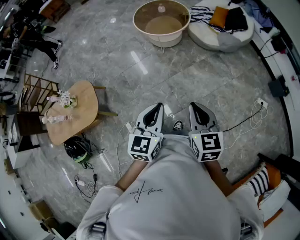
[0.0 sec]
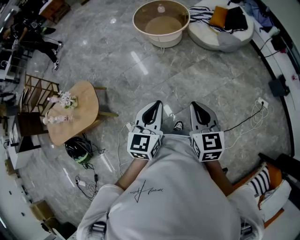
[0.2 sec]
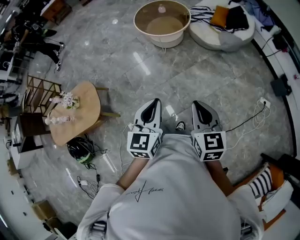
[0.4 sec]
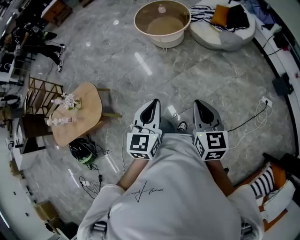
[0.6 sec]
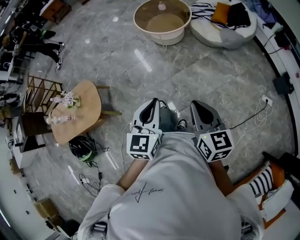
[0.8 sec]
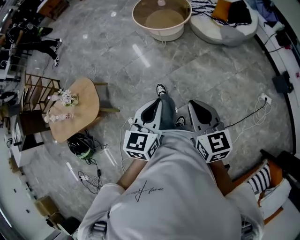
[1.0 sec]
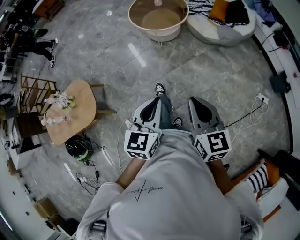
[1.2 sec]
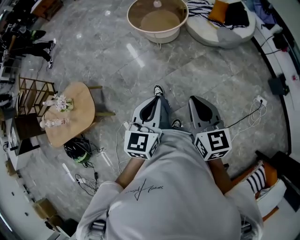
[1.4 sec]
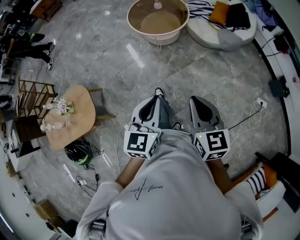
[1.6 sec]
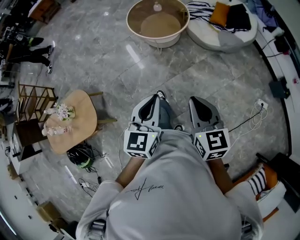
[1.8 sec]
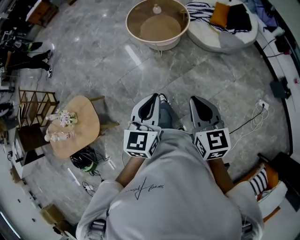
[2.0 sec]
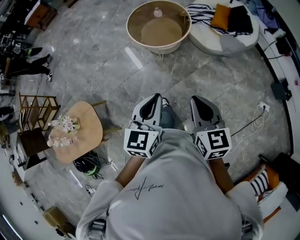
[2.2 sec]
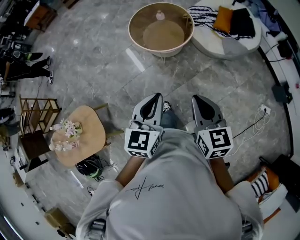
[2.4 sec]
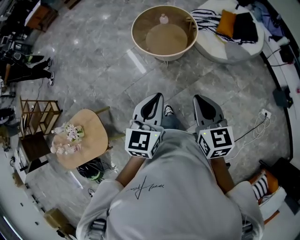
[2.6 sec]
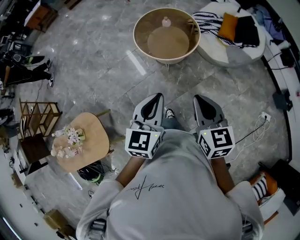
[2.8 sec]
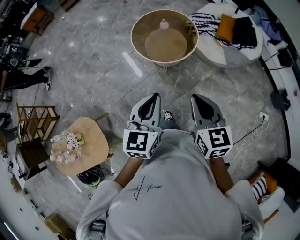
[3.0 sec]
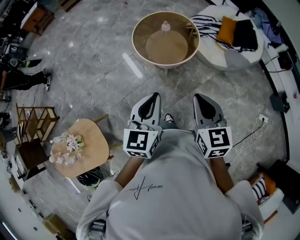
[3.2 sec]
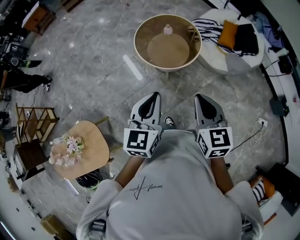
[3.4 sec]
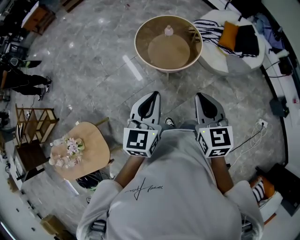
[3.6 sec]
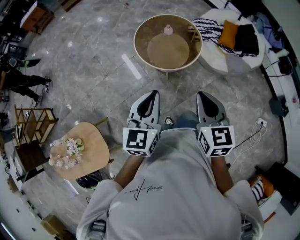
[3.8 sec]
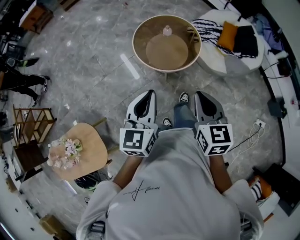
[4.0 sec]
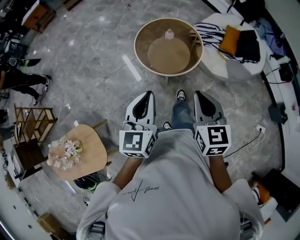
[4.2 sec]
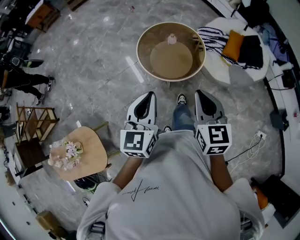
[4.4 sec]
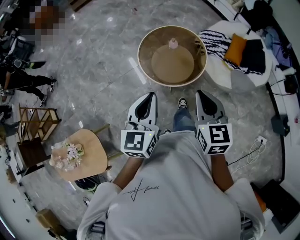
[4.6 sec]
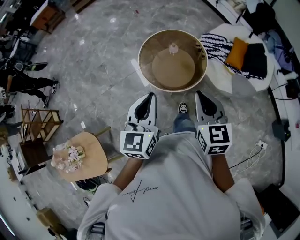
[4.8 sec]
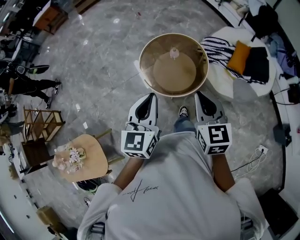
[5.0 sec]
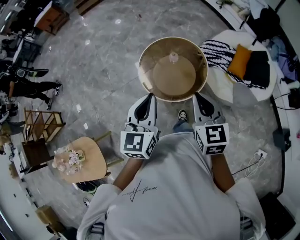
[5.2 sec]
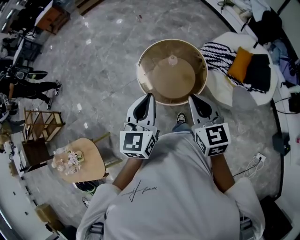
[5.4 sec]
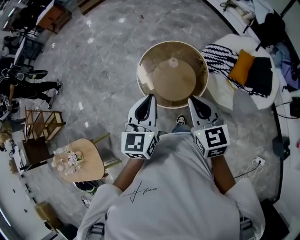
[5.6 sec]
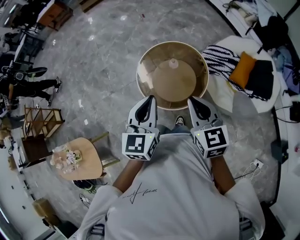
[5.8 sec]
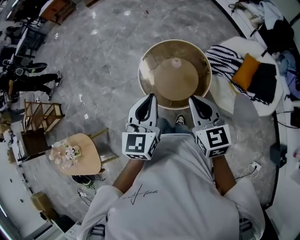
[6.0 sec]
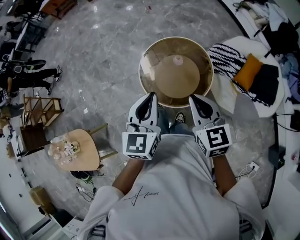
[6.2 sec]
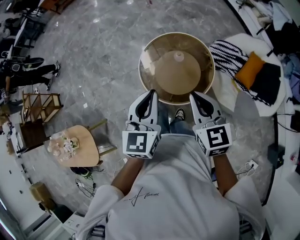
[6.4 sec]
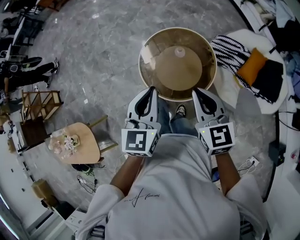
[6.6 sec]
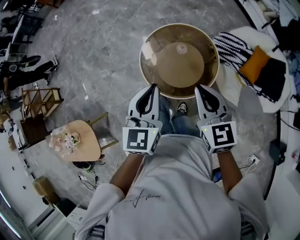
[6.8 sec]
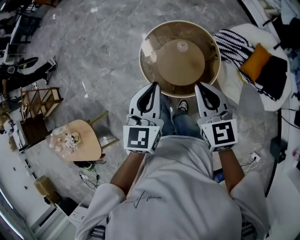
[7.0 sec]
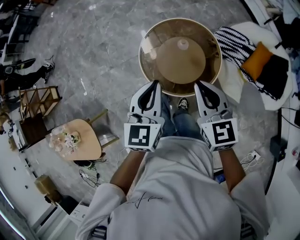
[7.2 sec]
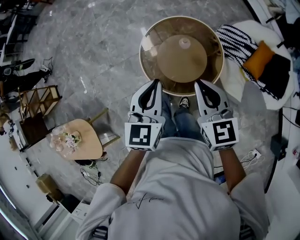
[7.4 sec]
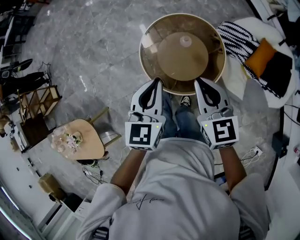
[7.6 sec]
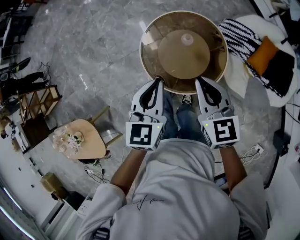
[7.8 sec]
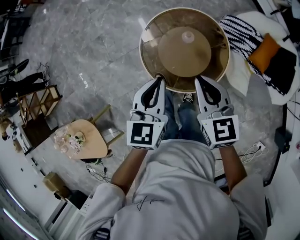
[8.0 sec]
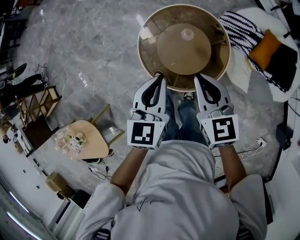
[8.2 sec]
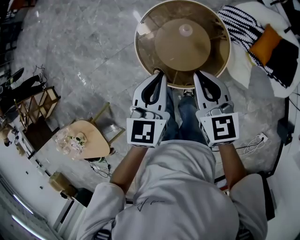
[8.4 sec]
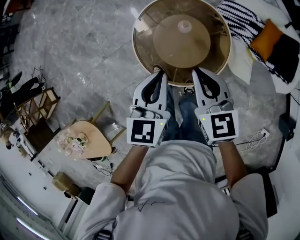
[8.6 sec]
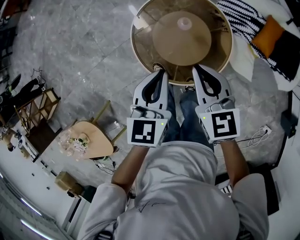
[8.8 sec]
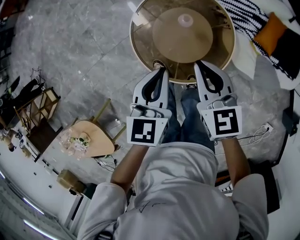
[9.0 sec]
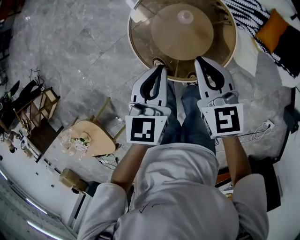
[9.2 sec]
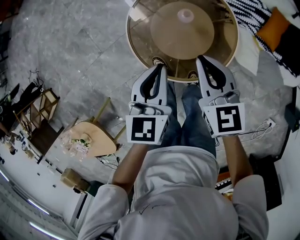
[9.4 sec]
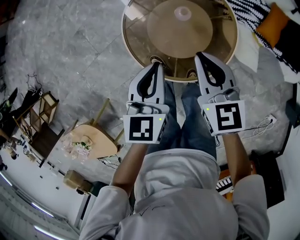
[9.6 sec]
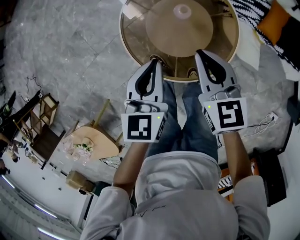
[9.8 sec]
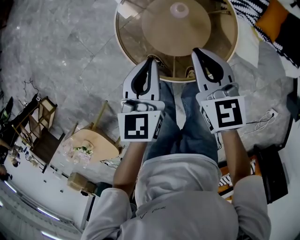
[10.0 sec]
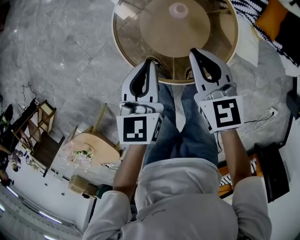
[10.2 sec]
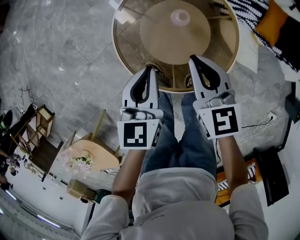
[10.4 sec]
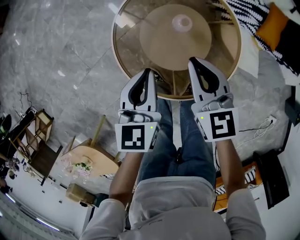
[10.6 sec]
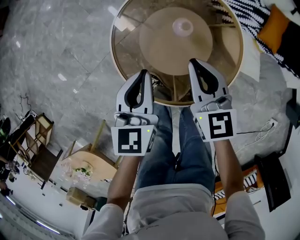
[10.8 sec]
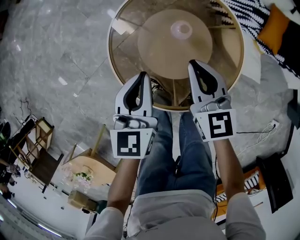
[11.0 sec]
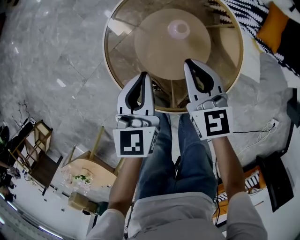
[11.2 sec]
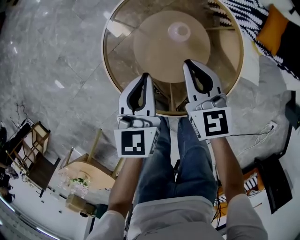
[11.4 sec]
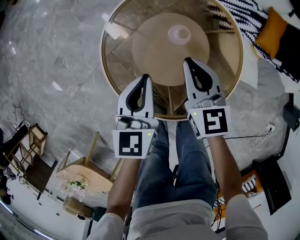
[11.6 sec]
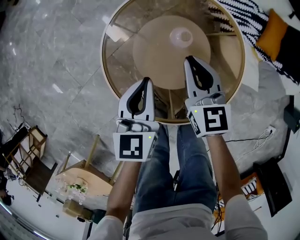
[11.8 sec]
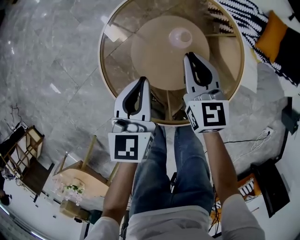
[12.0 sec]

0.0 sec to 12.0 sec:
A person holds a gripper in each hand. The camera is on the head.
0.0 sec to 1.6 sec: Both grippers move forward, roughly 10 cm.
1.6 sec to 3.0 sec: The two grippers go approximately 25 cm forward.
3.0 sec to 4.4 sec: Both grippers move forward, approximately 15 cm.
4.4 sec to 6.0 sec: The left gripper is displaced forward and to the right by about 25 cm, while the right gripper travels forward by about 20 cm.
6.0 sec to 7.6 sec: The right gripper shifts some 10 cm forward and downward. Meanwhile the left gripper travels downward and forward by about 10 cm.
7.6 sec to 9.0 sec: Both grippers travel together downward and forward, some 10 cm.
9.0 sec to 10.4 sec: The left gripper heads downward and forward, covering about 15 cm; the right gripper heads downward, covering roughly 10 cm.
10.4 sec to 12.0 sec: The left gripper travels downward by about 10 cm. The right gripper goes about 15 cm downward and forward.

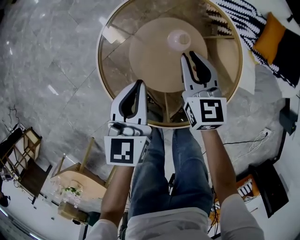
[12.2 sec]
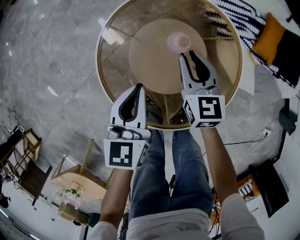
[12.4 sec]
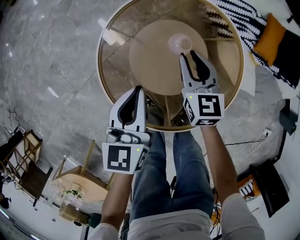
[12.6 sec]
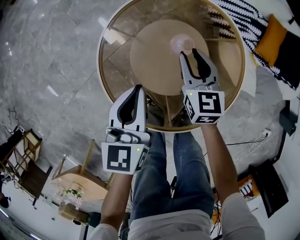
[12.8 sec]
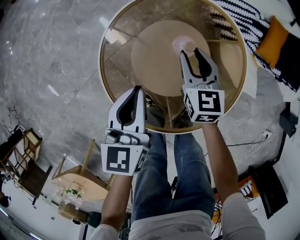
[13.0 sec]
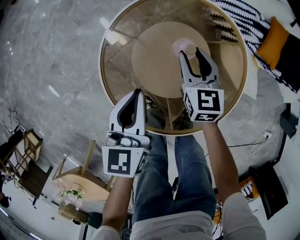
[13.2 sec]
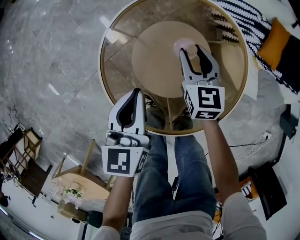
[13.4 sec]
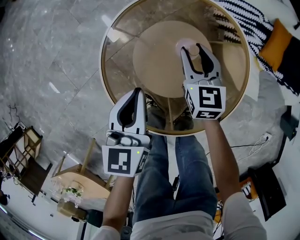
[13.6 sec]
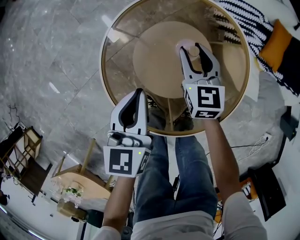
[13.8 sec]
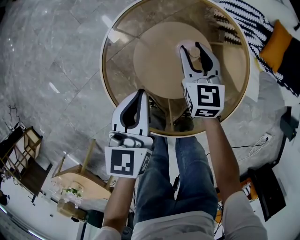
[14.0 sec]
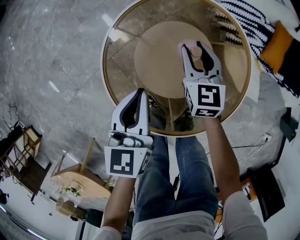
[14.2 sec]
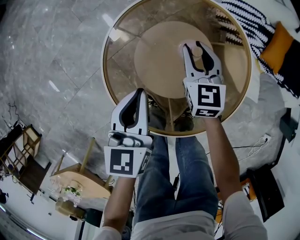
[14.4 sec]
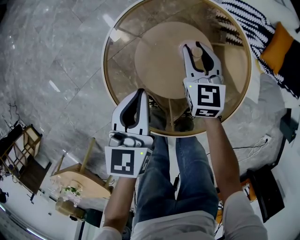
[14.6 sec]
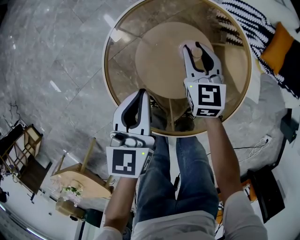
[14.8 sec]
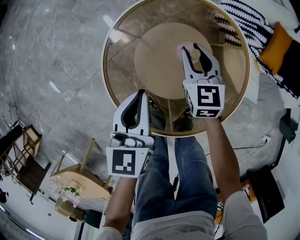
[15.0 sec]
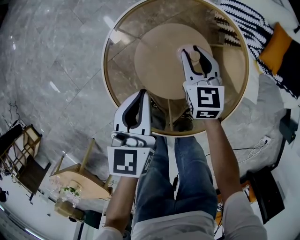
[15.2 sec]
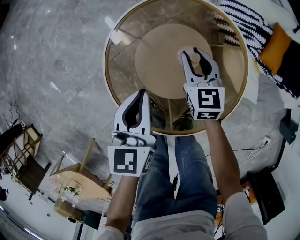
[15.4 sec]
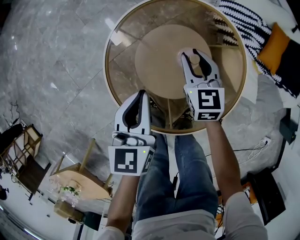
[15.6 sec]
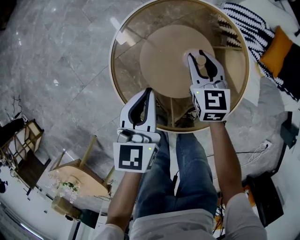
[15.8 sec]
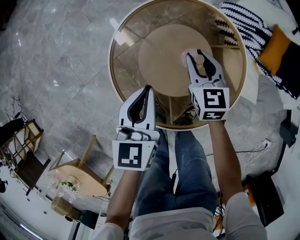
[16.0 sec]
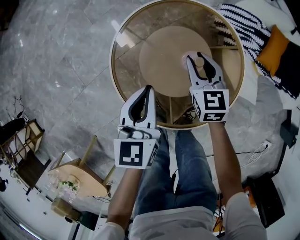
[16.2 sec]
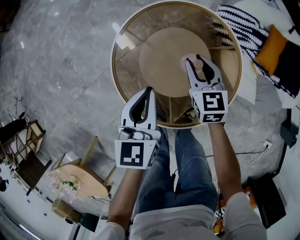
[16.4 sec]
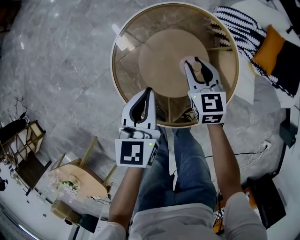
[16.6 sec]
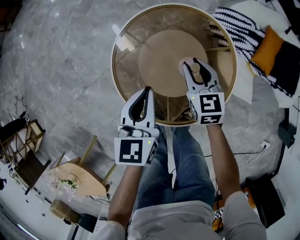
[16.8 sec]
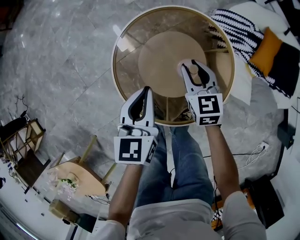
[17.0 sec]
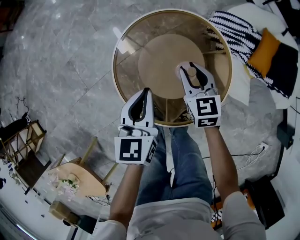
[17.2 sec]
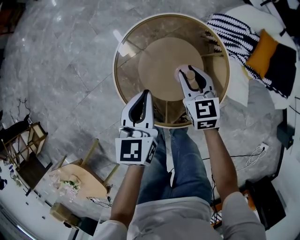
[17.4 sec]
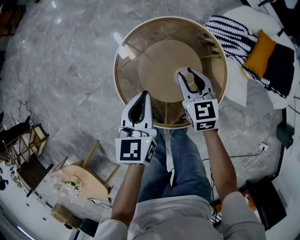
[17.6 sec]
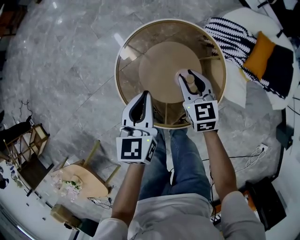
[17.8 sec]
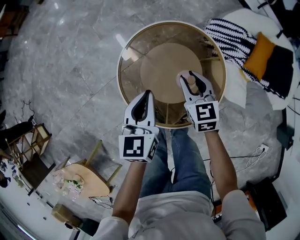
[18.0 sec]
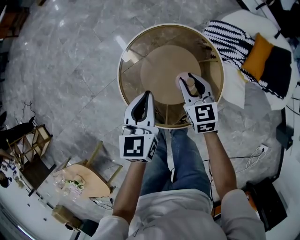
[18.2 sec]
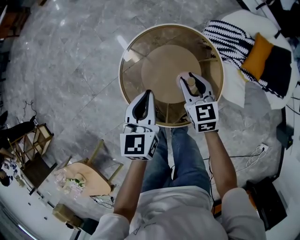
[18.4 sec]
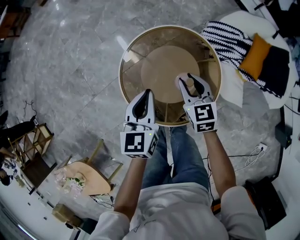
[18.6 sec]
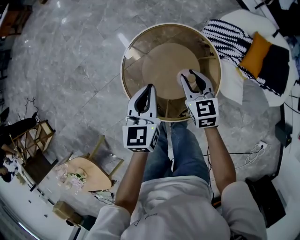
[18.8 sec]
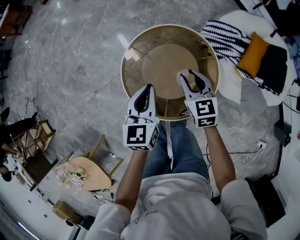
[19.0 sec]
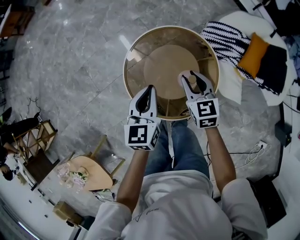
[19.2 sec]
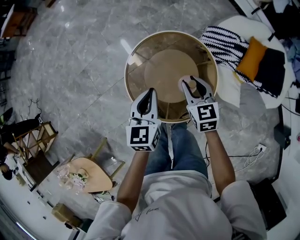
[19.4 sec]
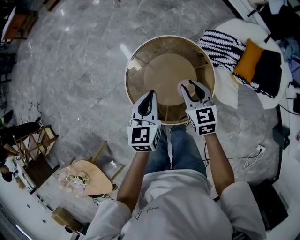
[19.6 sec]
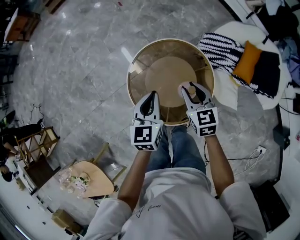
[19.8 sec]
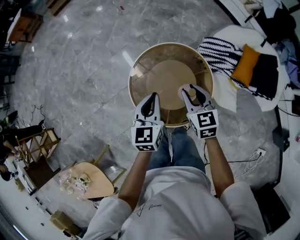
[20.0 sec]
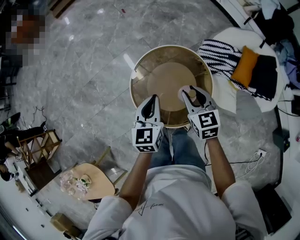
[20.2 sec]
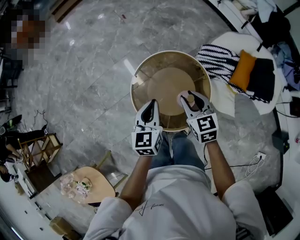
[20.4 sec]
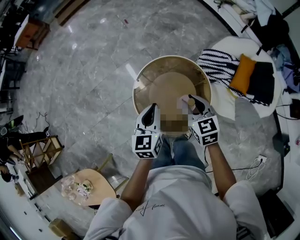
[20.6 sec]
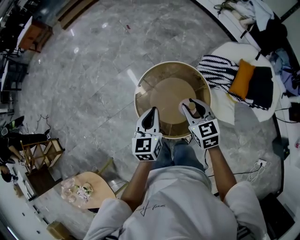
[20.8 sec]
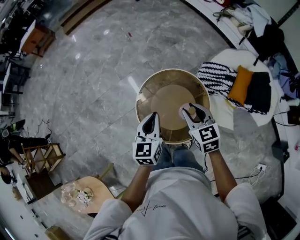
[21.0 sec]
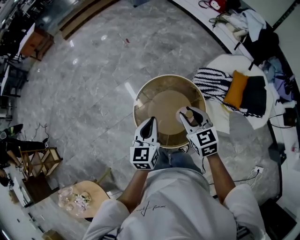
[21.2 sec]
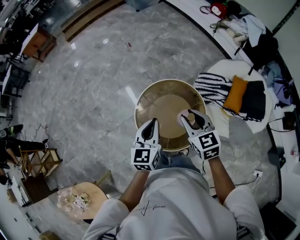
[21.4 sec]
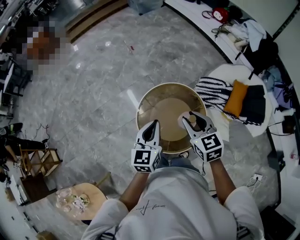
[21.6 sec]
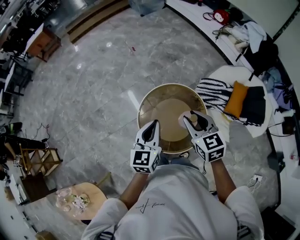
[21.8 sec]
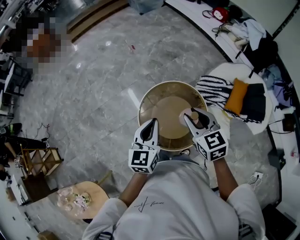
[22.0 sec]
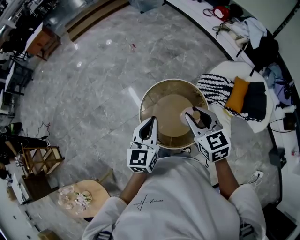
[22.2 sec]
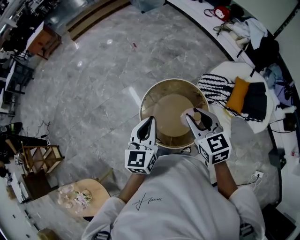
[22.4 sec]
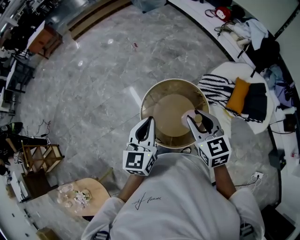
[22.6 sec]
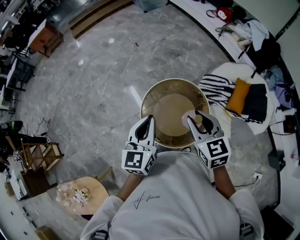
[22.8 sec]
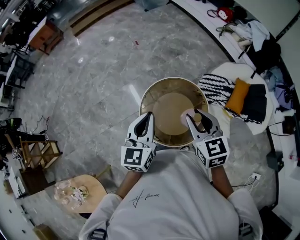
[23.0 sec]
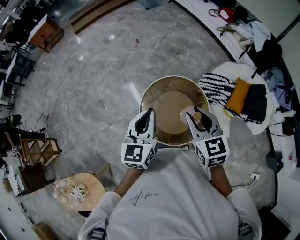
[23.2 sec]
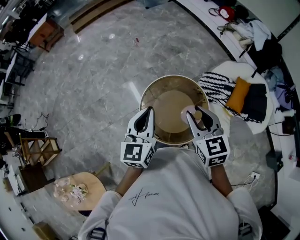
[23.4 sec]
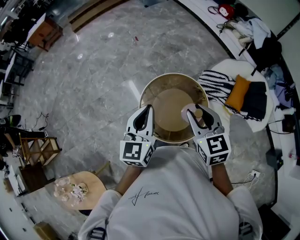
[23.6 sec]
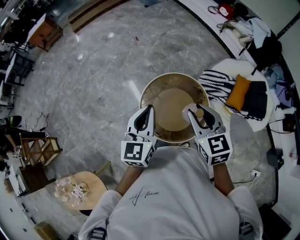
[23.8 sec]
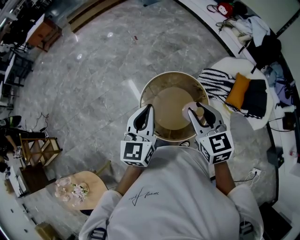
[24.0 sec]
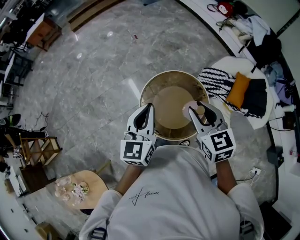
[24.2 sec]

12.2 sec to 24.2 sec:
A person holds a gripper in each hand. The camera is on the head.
12.2 sec to 13.8 sec: The right gripper moves forward and downward, some 5 cm, and opens up.
13.8 sec to 15.2 sec: Neither gripper changes place.
15.2 sec to 16.6 sec: The right gripper moves upward and backward, some 10 cm; the left gripper heads upward, covering about 5 cm.
16.6 sec to 18.2 sec: The two grippers go roughly 10 cm upward.
18.2 sec to 19.8 sec: The right gripper shifts approximately 10 cm upward; the left gripper moves upward, some 10 cm.
19.8 sec to 21.2 sec: The grippers both shift upward by approximately 10 cm.
21.2 sec to 22.6 sec: The two grippers go roughly 10 cm upward.
22.6 sec to 24.2 sec: The grippers stay close to where they were, moving slightly.
